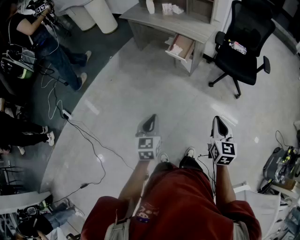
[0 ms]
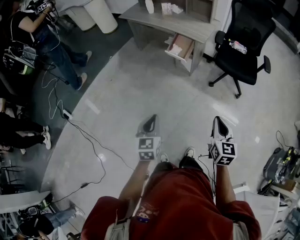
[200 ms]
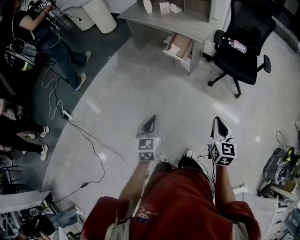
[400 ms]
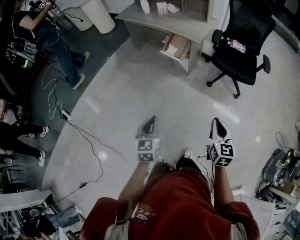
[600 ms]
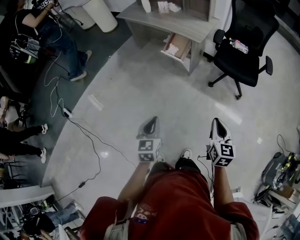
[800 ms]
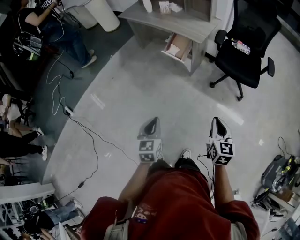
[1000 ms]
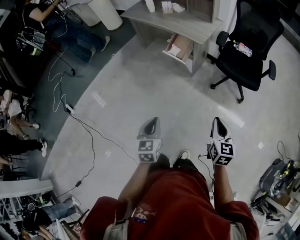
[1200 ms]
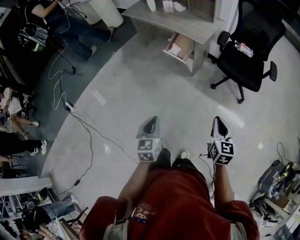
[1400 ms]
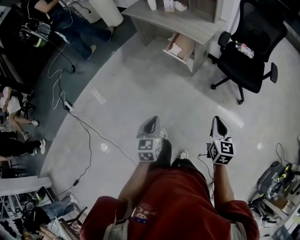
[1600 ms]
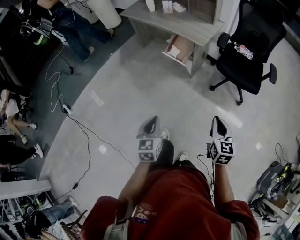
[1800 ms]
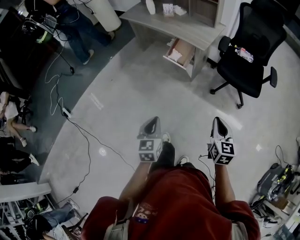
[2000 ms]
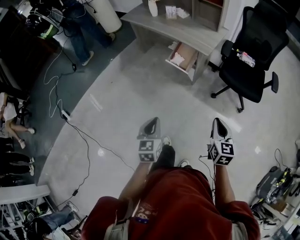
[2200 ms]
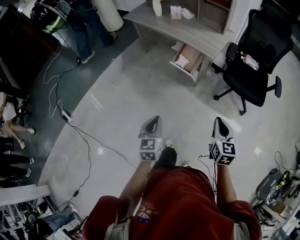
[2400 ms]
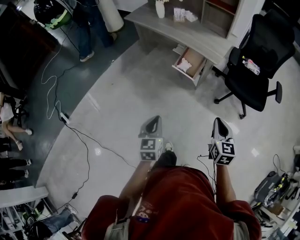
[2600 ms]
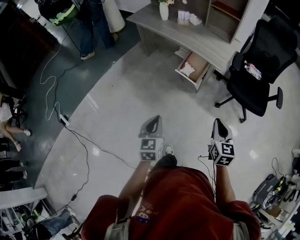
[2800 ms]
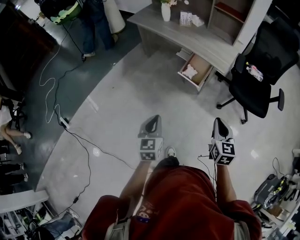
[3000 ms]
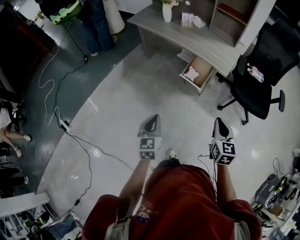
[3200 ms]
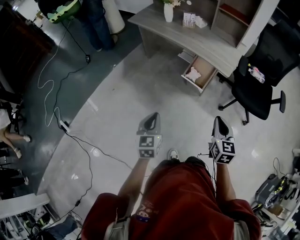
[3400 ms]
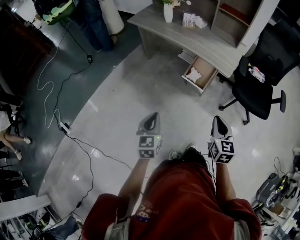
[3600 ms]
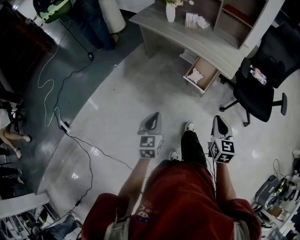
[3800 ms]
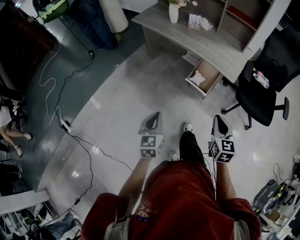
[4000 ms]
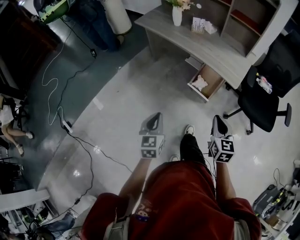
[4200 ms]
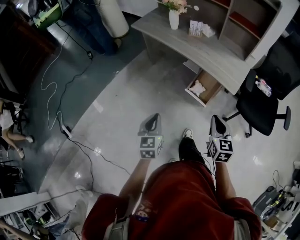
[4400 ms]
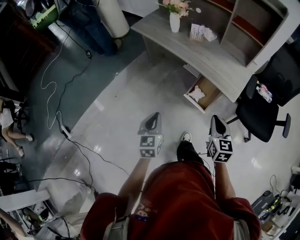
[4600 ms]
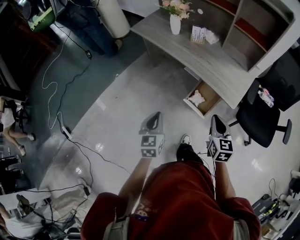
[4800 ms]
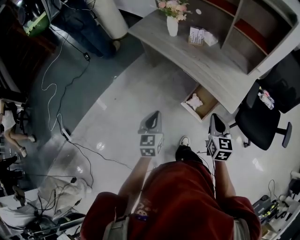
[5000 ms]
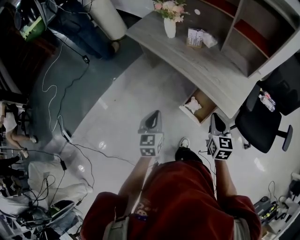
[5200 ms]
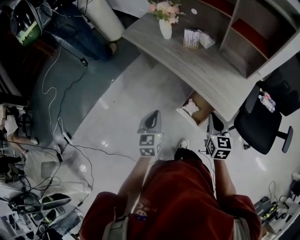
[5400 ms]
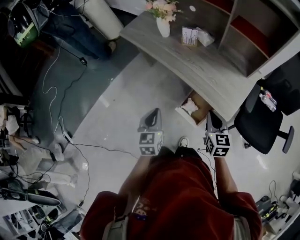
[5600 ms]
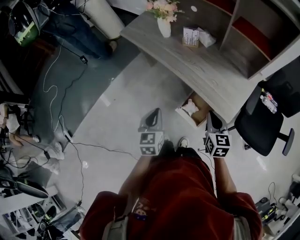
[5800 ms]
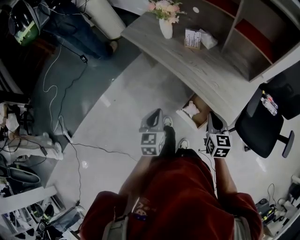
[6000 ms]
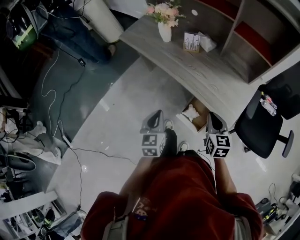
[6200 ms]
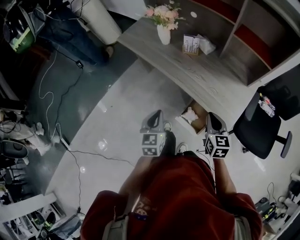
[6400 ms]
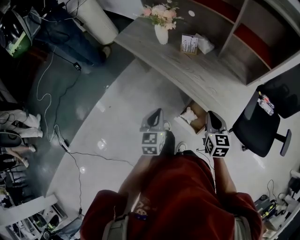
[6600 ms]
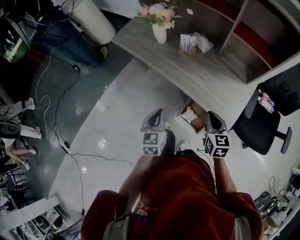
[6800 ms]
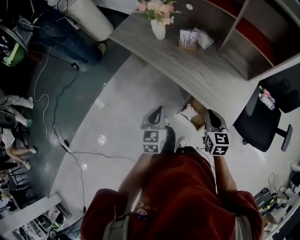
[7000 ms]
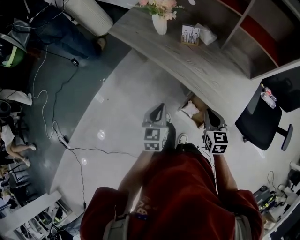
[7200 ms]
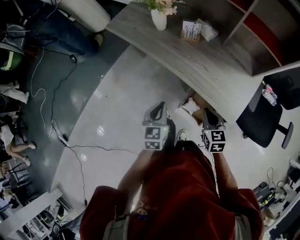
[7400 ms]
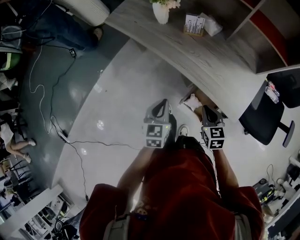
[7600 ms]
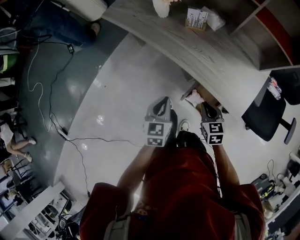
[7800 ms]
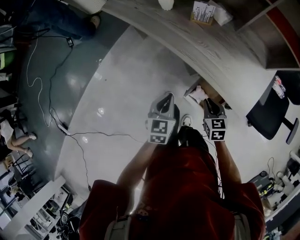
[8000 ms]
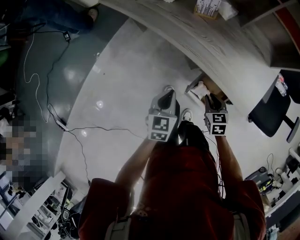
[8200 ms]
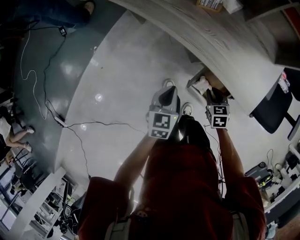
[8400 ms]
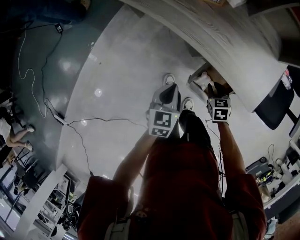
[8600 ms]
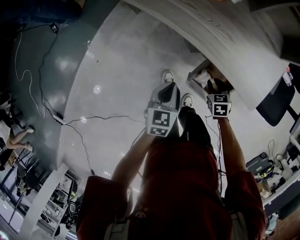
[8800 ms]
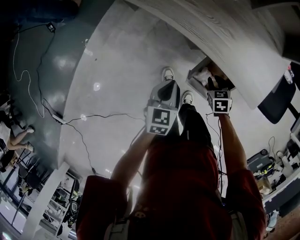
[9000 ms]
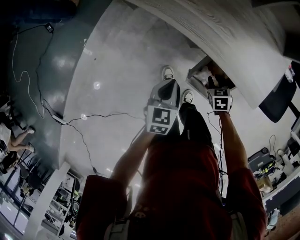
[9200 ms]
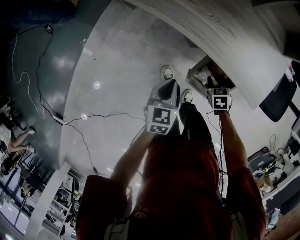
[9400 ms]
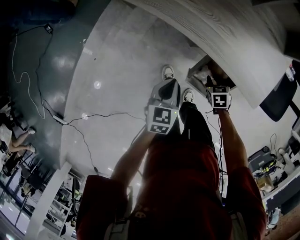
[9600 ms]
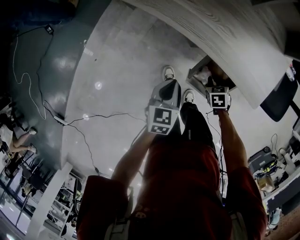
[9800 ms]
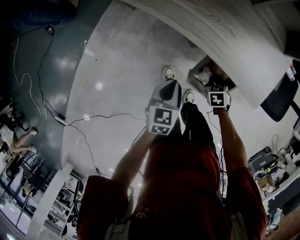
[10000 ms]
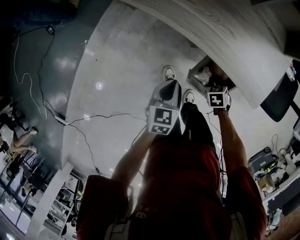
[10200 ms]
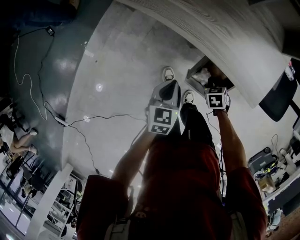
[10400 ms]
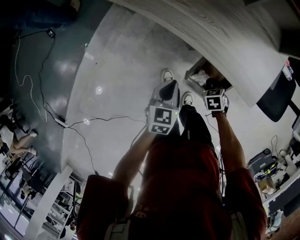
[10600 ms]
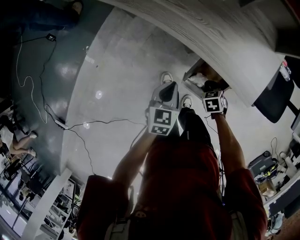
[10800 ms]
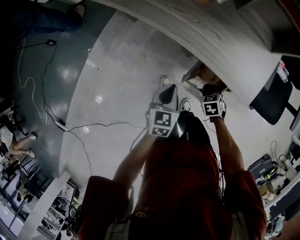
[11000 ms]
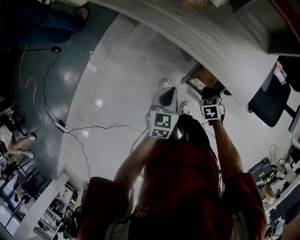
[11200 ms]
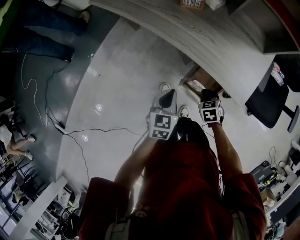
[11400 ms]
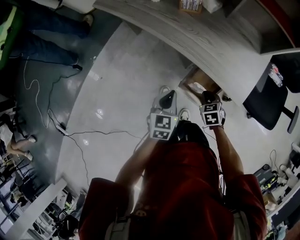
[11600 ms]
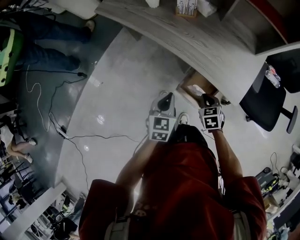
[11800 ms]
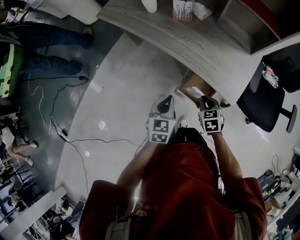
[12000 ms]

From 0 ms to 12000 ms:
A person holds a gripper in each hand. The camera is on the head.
From 0 ms to 1600 ms: The grippers both shift to the right and forward by some 15 cm.
From 1600 ms to 3000 ms: The grippers both shift forward and to the left by some 30 cm.
From 3000 ms to 4400 ms: Both grippers travel together forward, about 20 cm.
From 4400 ms to 6000 ms: The right gripper goes roughly 25 cm forward; the left gripper travels forward and to the right by about 25 cm.
From 6000 ms to 7600 ms: The right gripper goes roughly 10 cm downward, to the left and forward. The left gripper goes some 10 cm forward and downward.
From 7600 ms to 9000 ms: The right gripper goes roughly 20 cm downward, and swivels approximately 20 degrees, while the left gripper heads downward, covering some 15 cm.
From 9000 ms to 10400 ms: The right gripper closes its fingers.
From 10400 ms to 12000 ms: The right gripper heads upward and backward, covering about 20 cm, and swivels some 20 degrees. The left gripper moves upward, backward and to the right, approximately 15 cm.

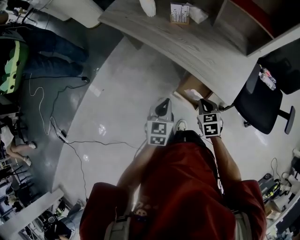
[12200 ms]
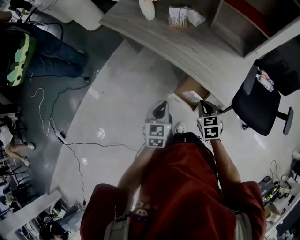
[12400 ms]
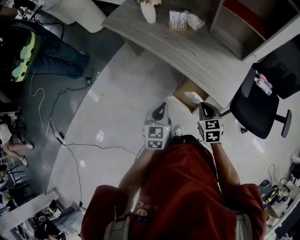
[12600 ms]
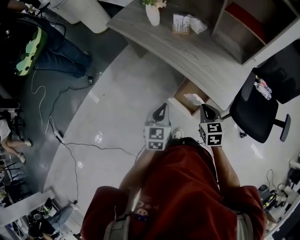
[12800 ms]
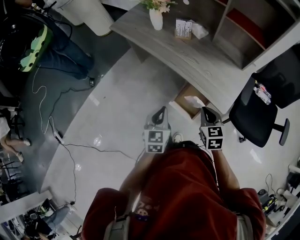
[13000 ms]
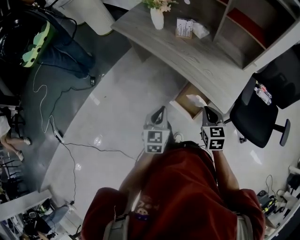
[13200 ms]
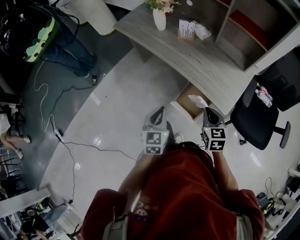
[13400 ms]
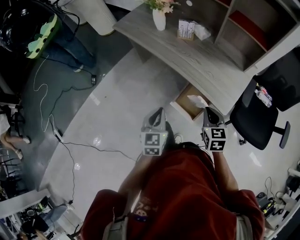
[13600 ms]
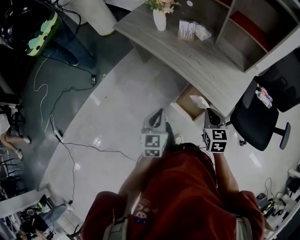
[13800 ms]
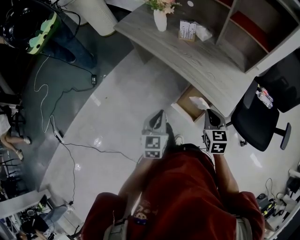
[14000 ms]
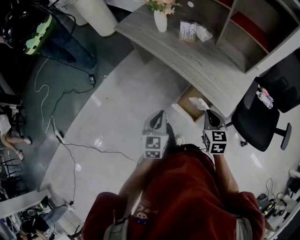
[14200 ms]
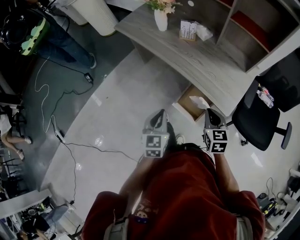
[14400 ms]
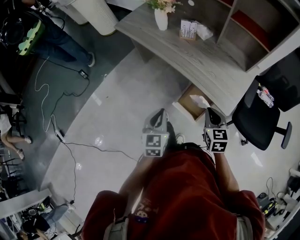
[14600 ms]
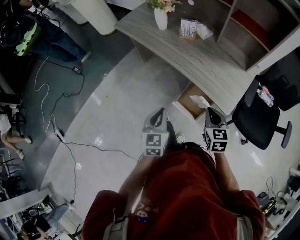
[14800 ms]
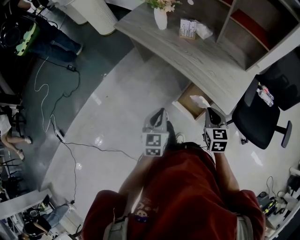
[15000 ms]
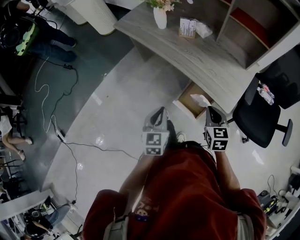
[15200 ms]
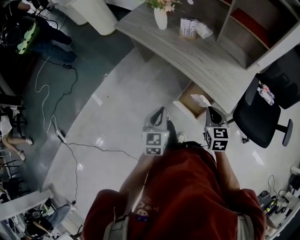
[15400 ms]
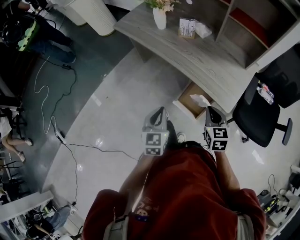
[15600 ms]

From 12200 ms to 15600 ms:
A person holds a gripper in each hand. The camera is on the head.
From 12200 ms to 13800 ms: The right gripper heads upward, covering roughly 10 cm, while the left gripper goes about 10 cm upward and backward.
From 13800 ms to 15600 ms: Neither gripper changes place.

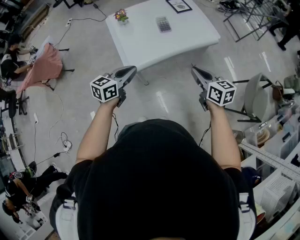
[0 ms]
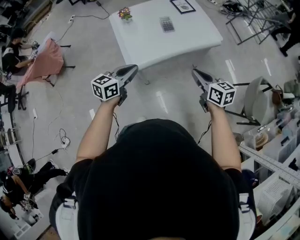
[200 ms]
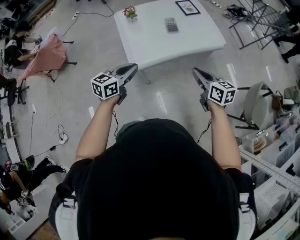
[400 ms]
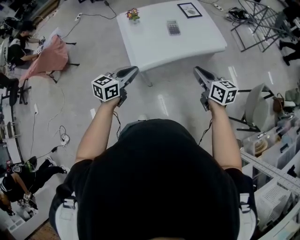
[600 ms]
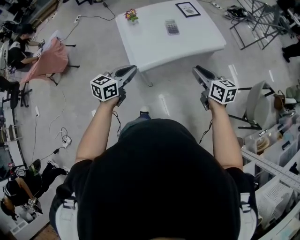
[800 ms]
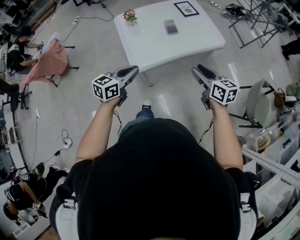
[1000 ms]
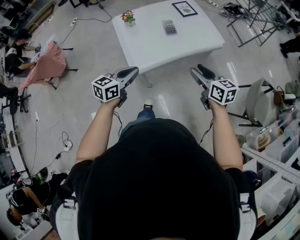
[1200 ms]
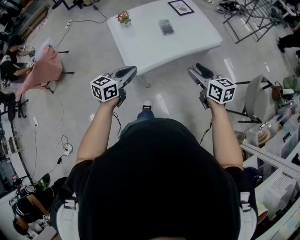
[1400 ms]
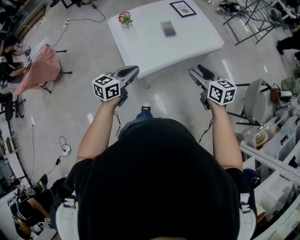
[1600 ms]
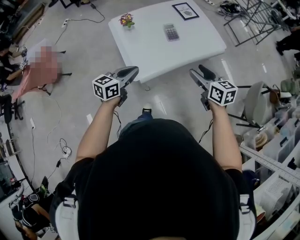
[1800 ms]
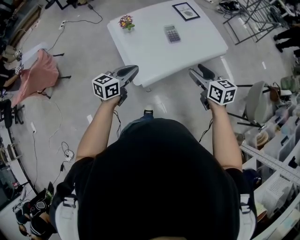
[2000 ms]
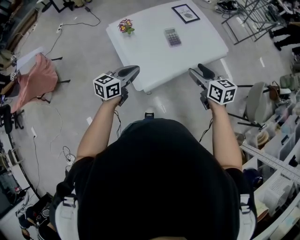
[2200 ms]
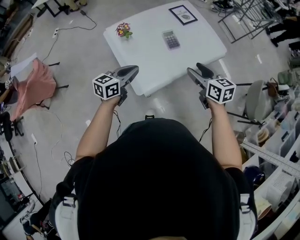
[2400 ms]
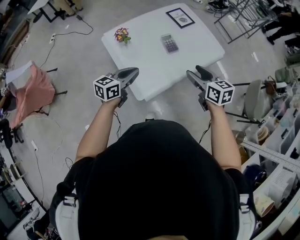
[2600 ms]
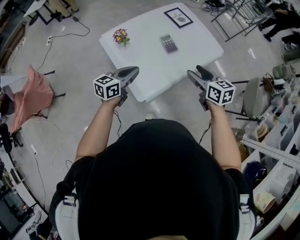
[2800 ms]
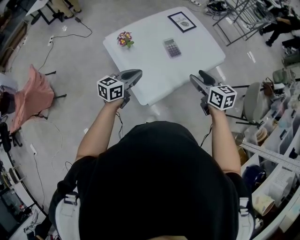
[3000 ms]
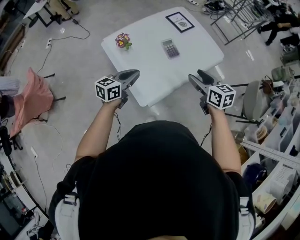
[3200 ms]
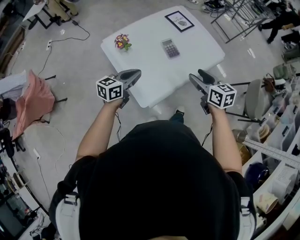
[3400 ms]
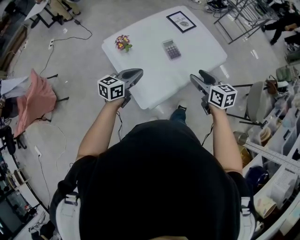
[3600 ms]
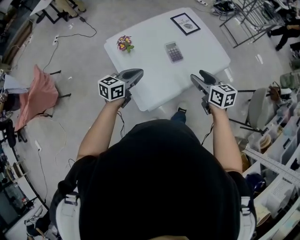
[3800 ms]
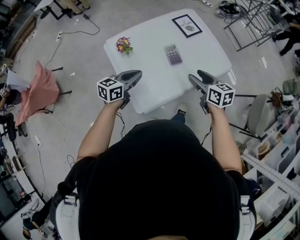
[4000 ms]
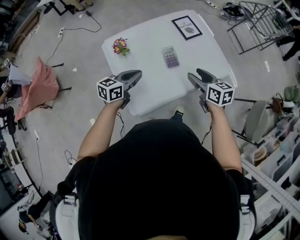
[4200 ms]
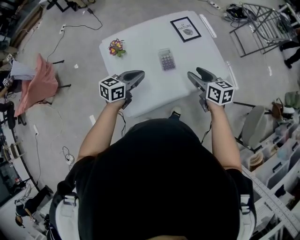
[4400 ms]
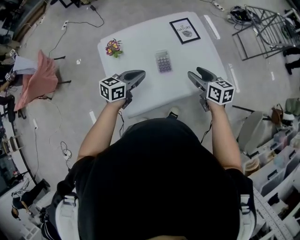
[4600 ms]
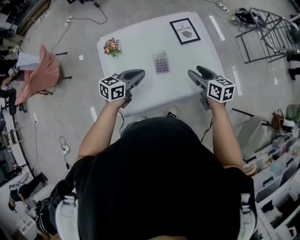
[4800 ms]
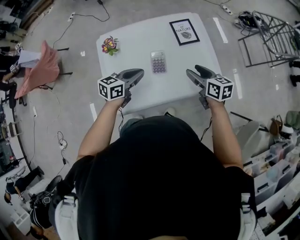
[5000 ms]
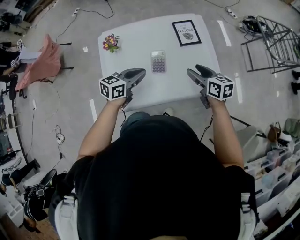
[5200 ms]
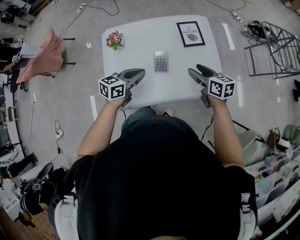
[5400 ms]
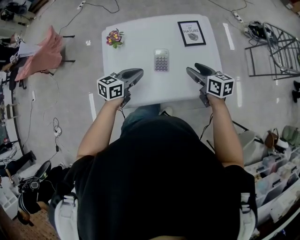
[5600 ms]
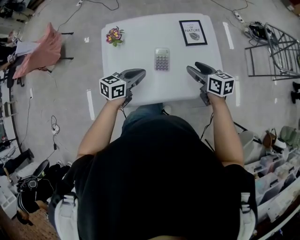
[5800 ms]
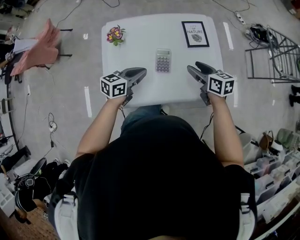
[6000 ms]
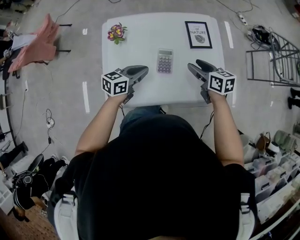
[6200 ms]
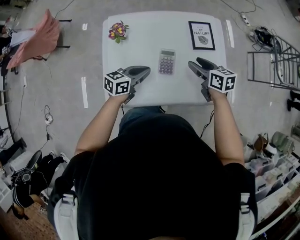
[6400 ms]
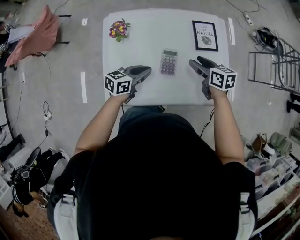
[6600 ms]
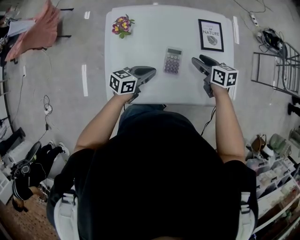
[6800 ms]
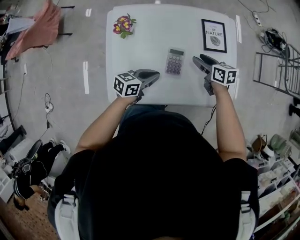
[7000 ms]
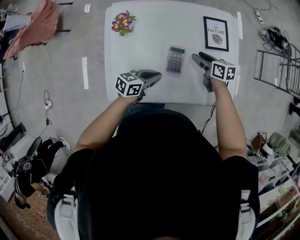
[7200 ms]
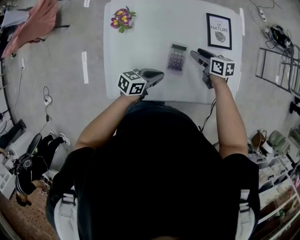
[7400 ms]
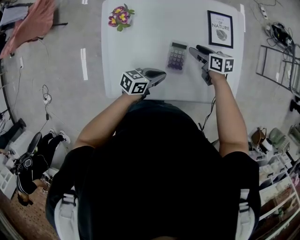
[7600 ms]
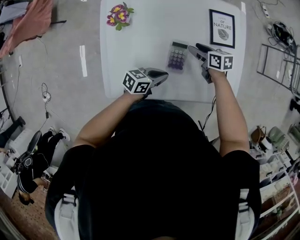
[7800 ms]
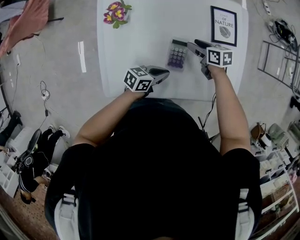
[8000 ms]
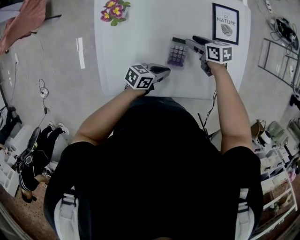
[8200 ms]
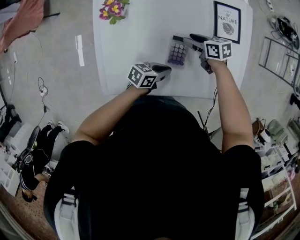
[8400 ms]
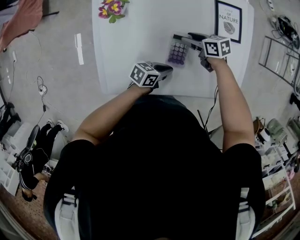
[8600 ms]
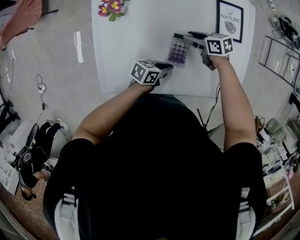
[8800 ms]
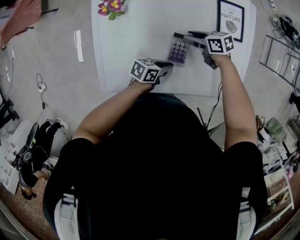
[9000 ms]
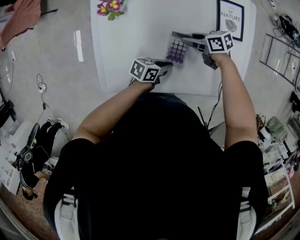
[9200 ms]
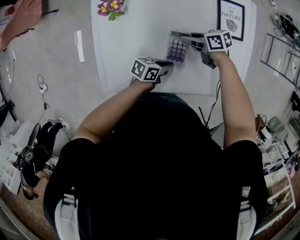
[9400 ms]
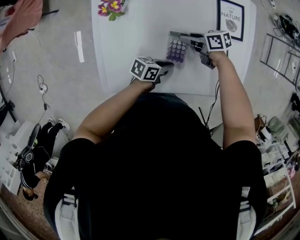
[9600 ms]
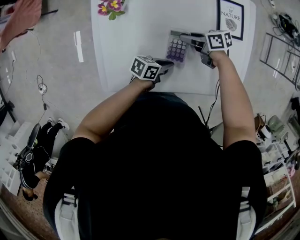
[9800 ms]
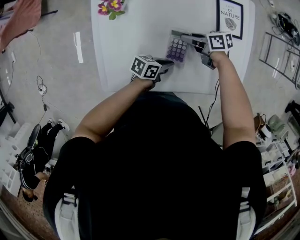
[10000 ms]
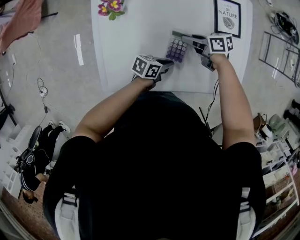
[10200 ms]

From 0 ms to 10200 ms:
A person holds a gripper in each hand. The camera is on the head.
From 0 ms to 1400 ms: The right gripper opens.
From 1400 ms to 3000 ms: The two grippers go roughly 20 cm forward and to the left.
From 3000 ms to 4400 ms: The grippers both shift forward and to the right by some 20 cm.
From 4400 ms to 5800 ms: The left gripper moves to the right, roughly 5 cm, while the right gripper heads forward and to the right, covering roughly 10 cm.
From 5800 ms to 7200 ms: The left gripper shifts some 10 cm downward, while the right gripper heads downward, forward and to the left, covering some 20 cm.
From 7200 ms to 8800 ms: Both grippers move downward, some 10 cm. The right gripper swivels roughly 20 degrees.
From 8800 ms to 10200 ms: The grippers move only a little.
